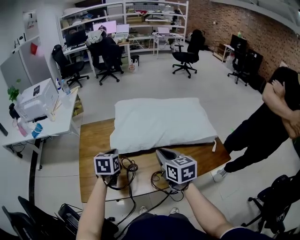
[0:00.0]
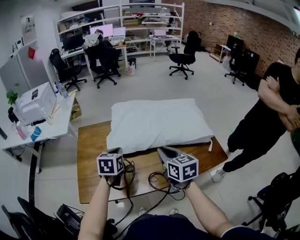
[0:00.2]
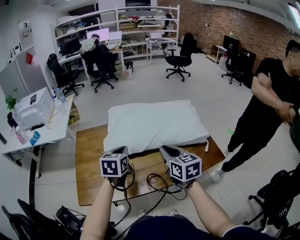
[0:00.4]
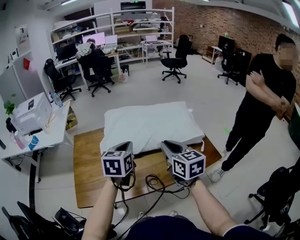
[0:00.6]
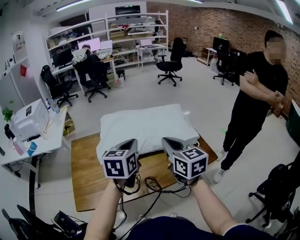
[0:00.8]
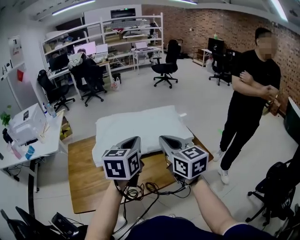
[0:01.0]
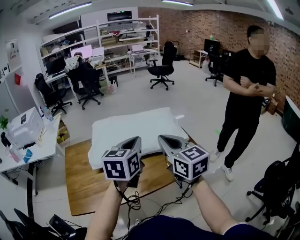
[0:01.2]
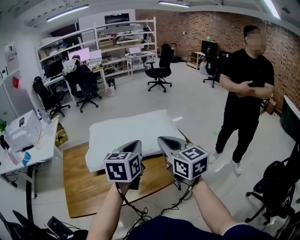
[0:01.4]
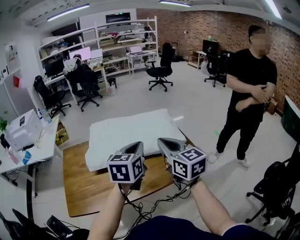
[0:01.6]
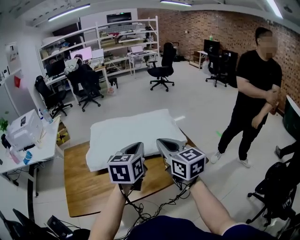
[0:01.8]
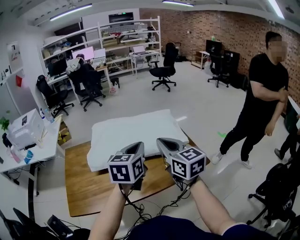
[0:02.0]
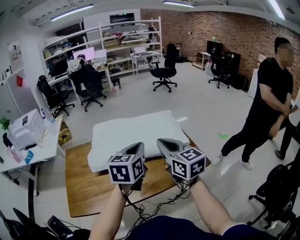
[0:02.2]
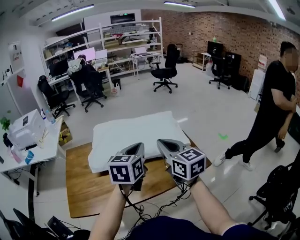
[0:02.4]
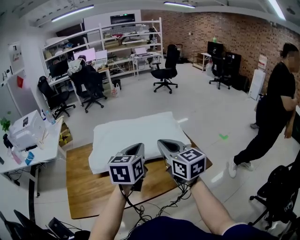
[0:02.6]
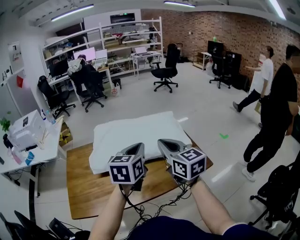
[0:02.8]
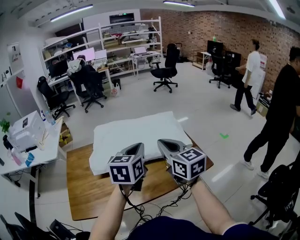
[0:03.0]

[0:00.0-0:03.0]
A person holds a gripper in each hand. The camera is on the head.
0:00.0 to 0:01.6: The right gripper moves to the right and upward, some 20 cm, and swivels some 20 degrees. The left gripper moves to the right and upward, about 35 cm, and changes its angle by approximately 30 degrees.
0:01.6 to 0:03.0: The grippers make only small movements.

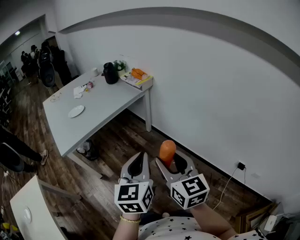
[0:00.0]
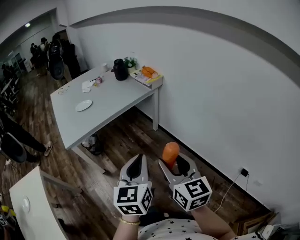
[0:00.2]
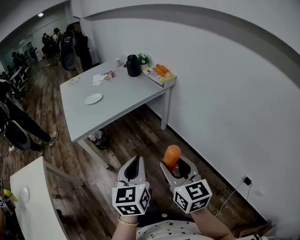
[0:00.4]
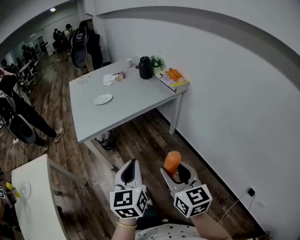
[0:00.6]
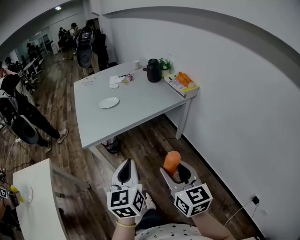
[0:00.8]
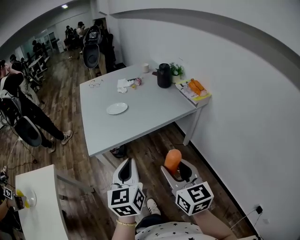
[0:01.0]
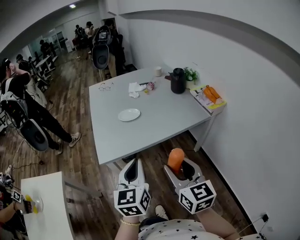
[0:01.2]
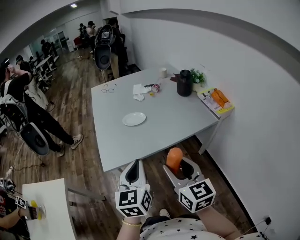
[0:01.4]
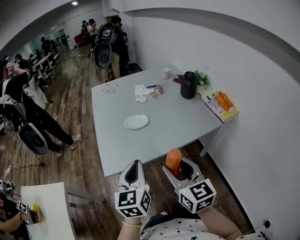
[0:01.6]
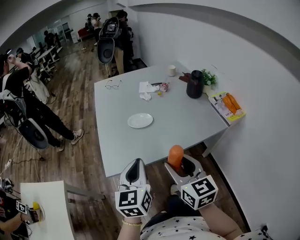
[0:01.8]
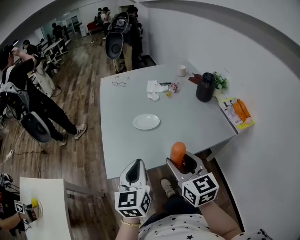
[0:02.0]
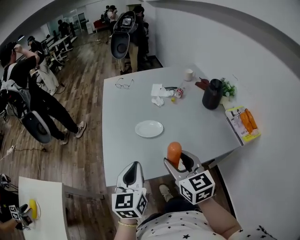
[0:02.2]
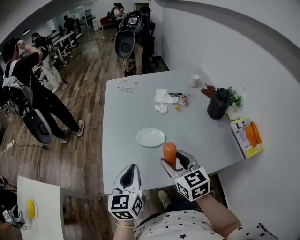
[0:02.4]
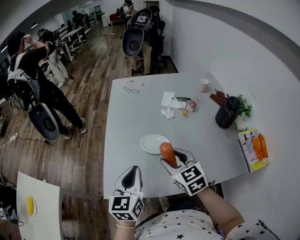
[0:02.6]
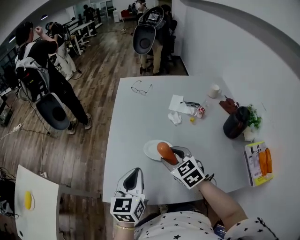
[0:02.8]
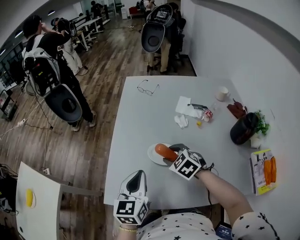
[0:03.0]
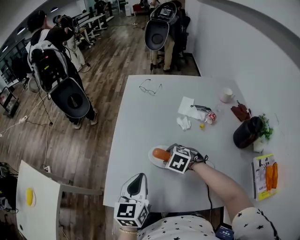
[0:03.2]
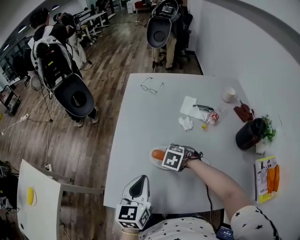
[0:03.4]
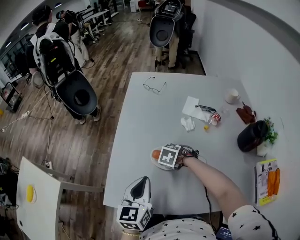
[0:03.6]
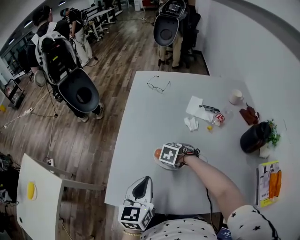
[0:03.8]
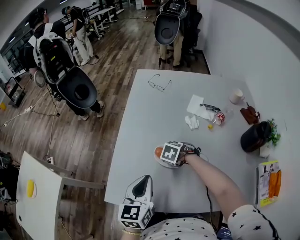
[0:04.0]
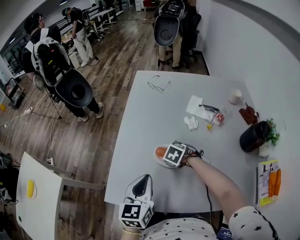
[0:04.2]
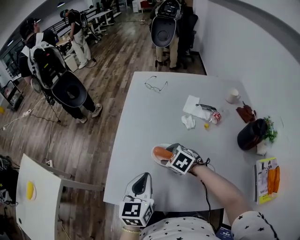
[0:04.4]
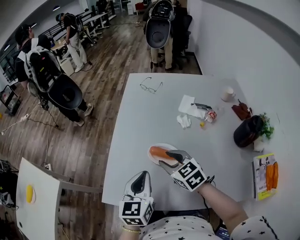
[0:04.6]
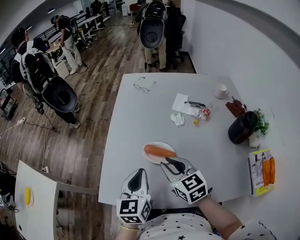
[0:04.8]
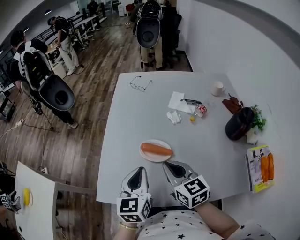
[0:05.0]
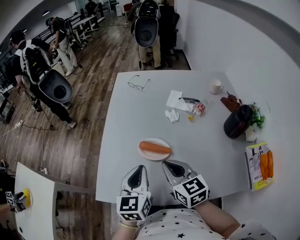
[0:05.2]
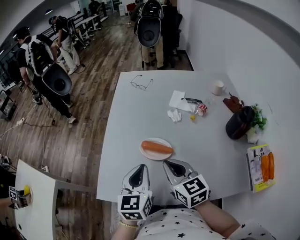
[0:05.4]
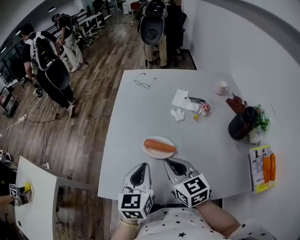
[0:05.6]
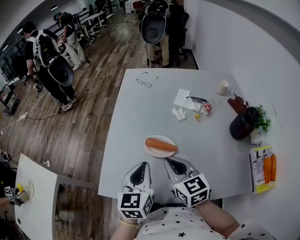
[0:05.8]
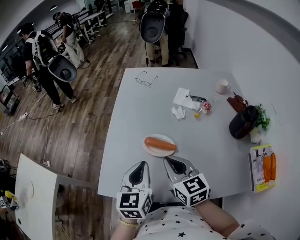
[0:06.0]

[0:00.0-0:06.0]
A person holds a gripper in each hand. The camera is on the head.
0:00.0 to 0:01.6: The two grippers travel together, approximately 50 cm. The left gripper swivels some 30 degrees, while the right gripper rotates approximately 30 degrees.
0:01.6 to 0:03.0: The left gripper ends up about 30 cm from where it was, while the right gripper ends up approximately 50 cm from where it was, and tilts its fingers roughly 40 degrees downward.
0:04.4 to 0:06.0: The right gripper shifts approximately 15 cm upward and backward, tilts its fingers roughly 40 degrees upward, and closes up.

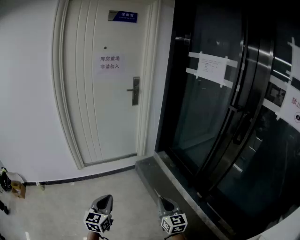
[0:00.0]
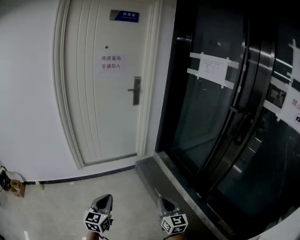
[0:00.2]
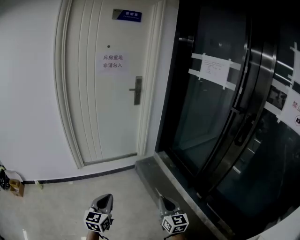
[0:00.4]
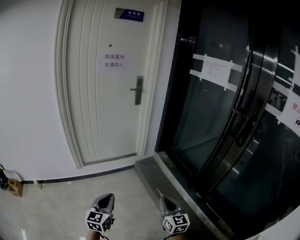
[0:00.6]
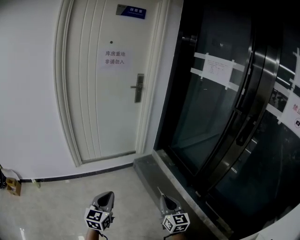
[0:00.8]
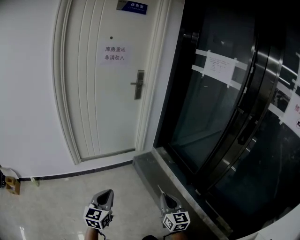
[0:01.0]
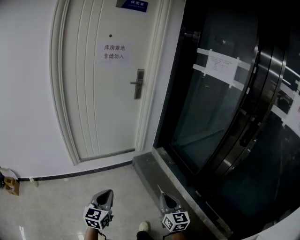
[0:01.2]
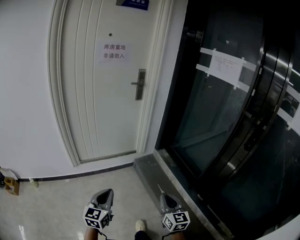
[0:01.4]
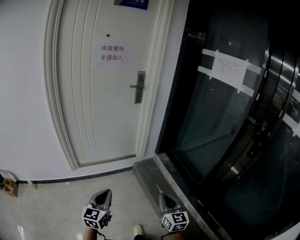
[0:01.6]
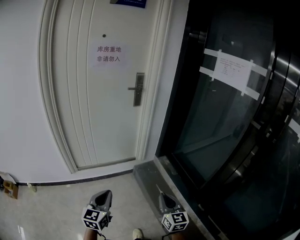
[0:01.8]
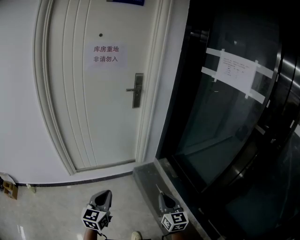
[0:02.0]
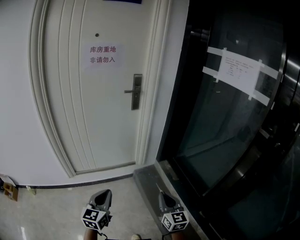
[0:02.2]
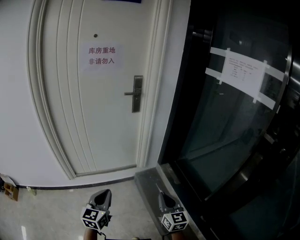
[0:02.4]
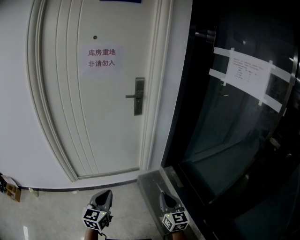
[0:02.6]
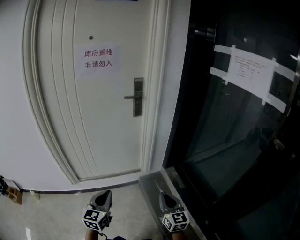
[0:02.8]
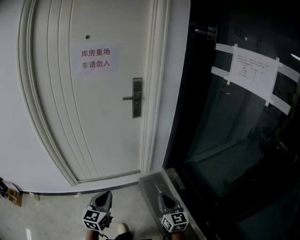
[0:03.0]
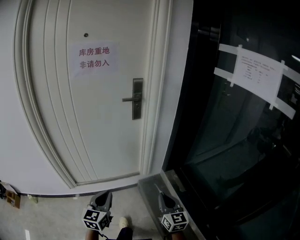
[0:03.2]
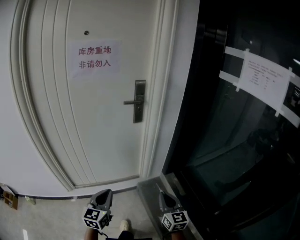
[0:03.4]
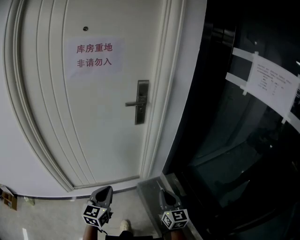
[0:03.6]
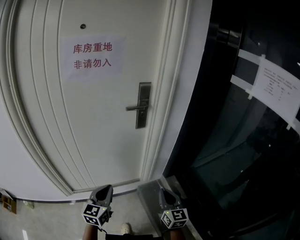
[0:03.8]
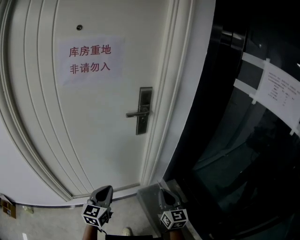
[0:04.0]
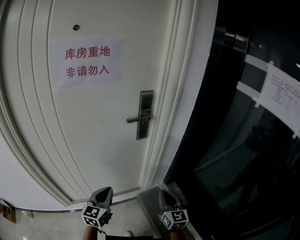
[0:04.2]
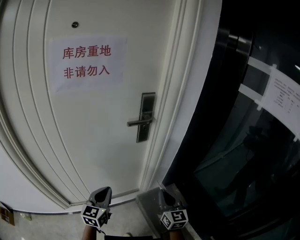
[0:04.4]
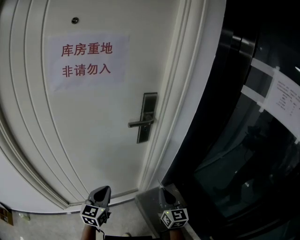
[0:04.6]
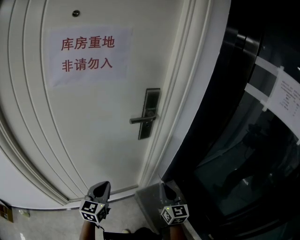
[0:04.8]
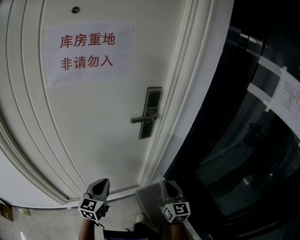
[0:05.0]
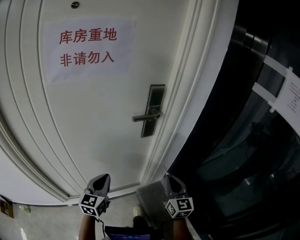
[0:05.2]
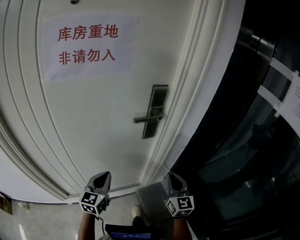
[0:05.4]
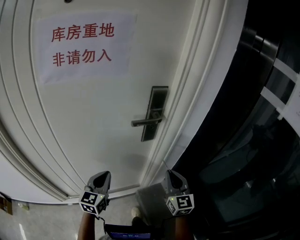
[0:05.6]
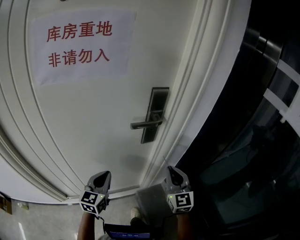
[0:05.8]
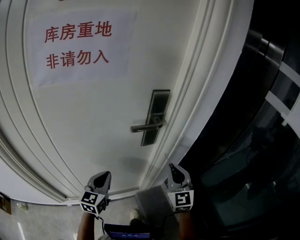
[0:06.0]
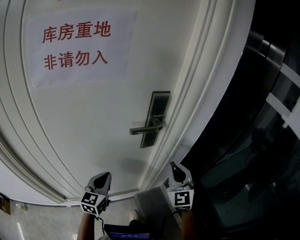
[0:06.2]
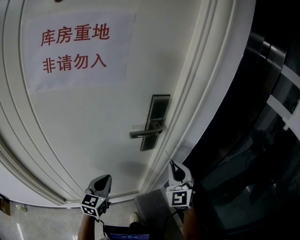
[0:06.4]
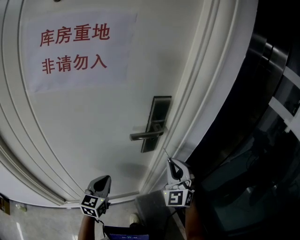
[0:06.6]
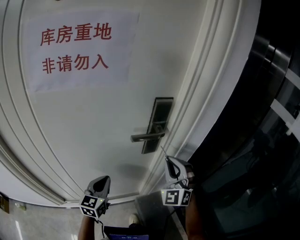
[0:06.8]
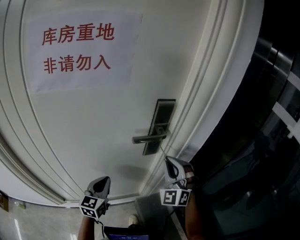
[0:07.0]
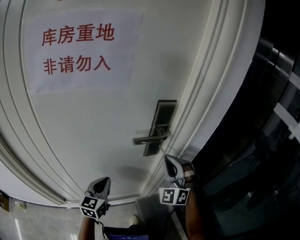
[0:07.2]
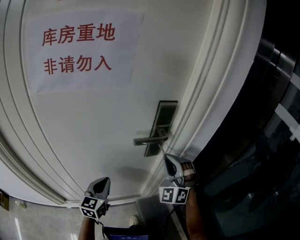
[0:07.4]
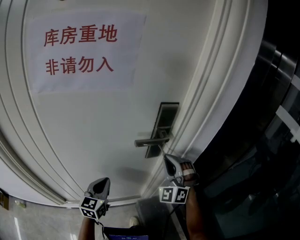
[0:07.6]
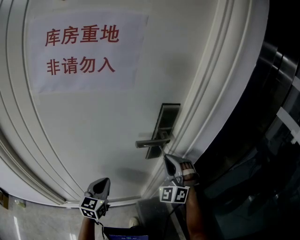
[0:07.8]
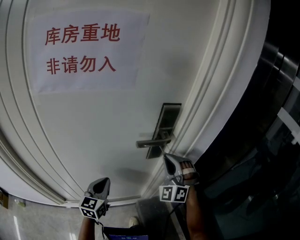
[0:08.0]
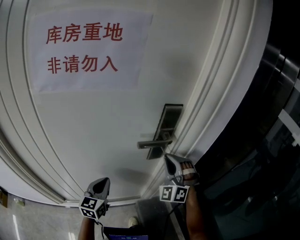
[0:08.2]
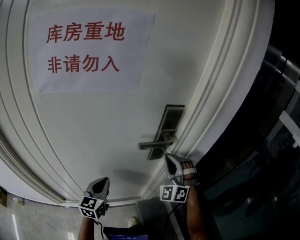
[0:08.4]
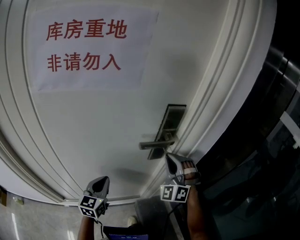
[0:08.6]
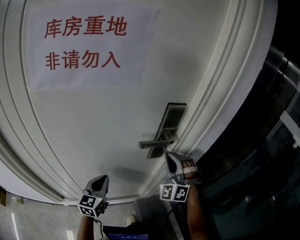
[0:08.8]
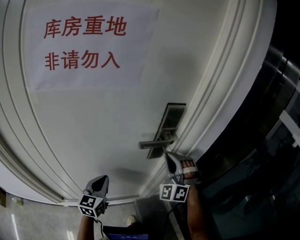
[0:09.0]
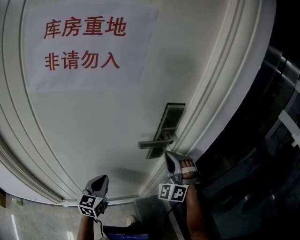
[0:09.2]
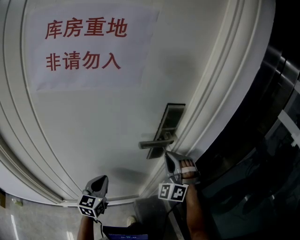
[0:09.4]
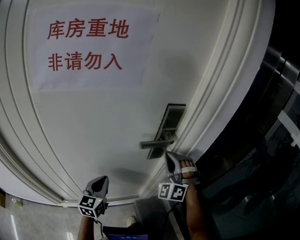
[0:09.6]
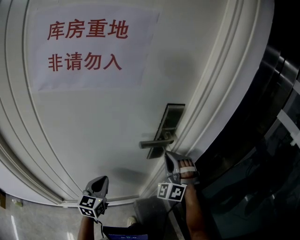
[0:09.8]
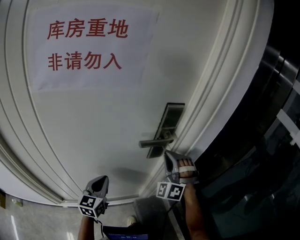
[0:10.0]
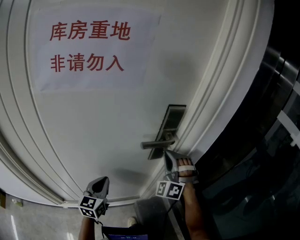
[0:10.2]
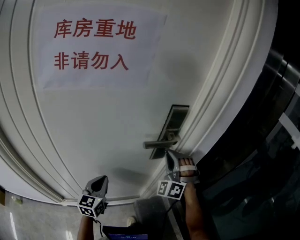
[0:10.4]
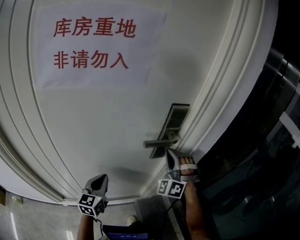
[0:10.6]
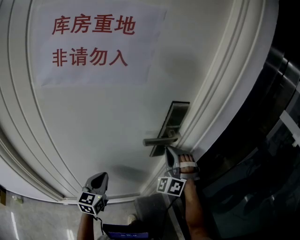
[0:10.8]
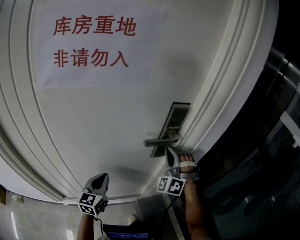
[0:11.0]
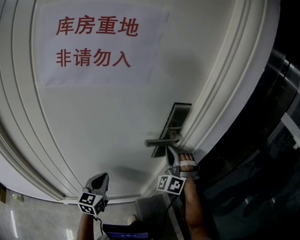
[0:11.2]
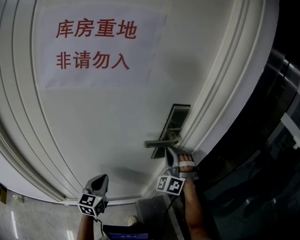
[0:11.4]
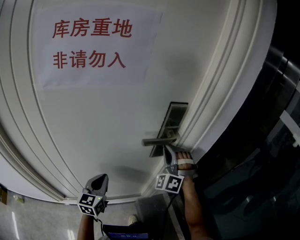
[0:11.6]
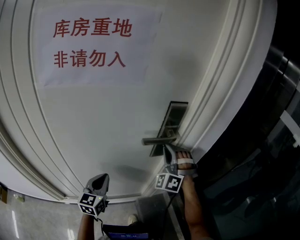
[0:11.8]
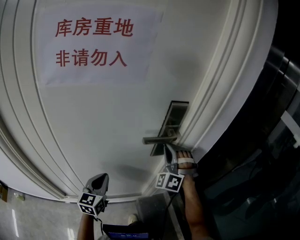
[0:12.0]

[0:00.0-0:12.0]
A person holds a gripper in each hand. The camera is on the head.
0:00.0 to 0:01.6: The two grippers go roughly 15 cm forward.
0:01.6 to 0:03.0: The two grippers go roughly 25 cm forward.
0:03.0 to 0:04.4: The grippers both shift forward by approximately 30 cm.
0:04.4 to 0:06.0: The left gripper is displaced forward by roughly 15 cm. The right gripper shifts roughly 20 cm forward and upward, and turns by some 30 degrees.
0:06.0 to 0:07.6: The right gripper moves forward and to the left, about 10 cm, and rotates around the line of its fingers by approximately 50 degrees, counterclockwise from behind.
0:07.6 to 0:12.0: The grippers move only a little.

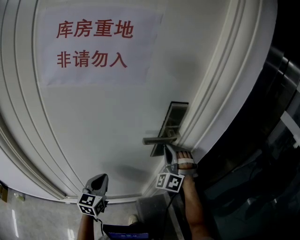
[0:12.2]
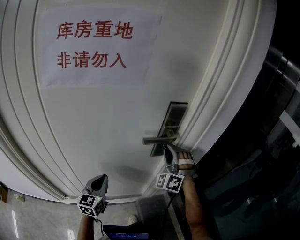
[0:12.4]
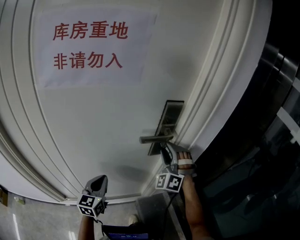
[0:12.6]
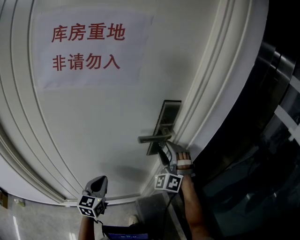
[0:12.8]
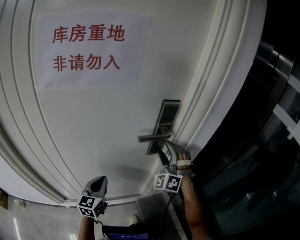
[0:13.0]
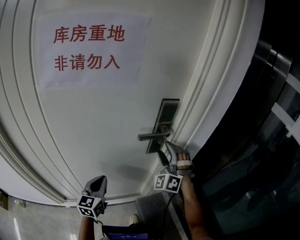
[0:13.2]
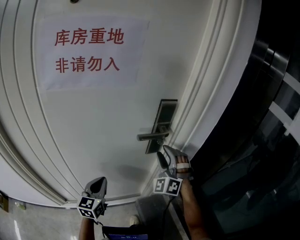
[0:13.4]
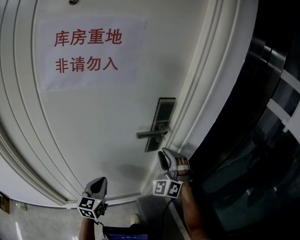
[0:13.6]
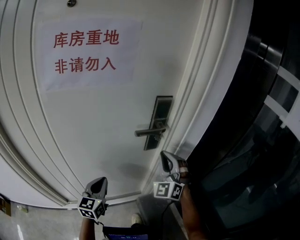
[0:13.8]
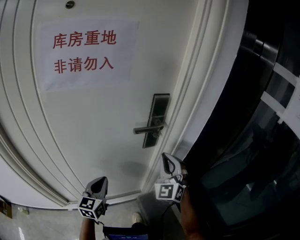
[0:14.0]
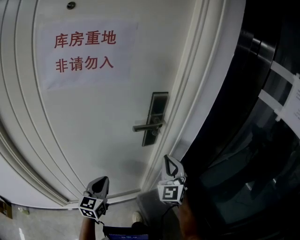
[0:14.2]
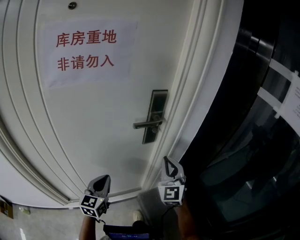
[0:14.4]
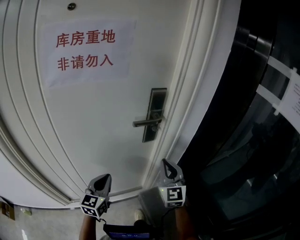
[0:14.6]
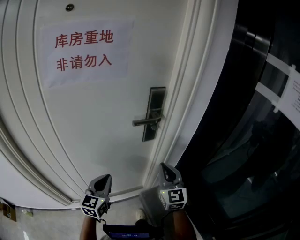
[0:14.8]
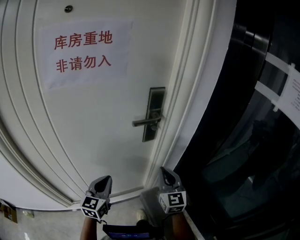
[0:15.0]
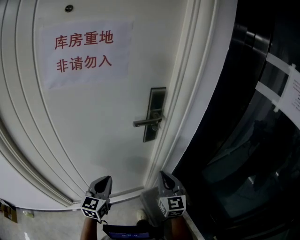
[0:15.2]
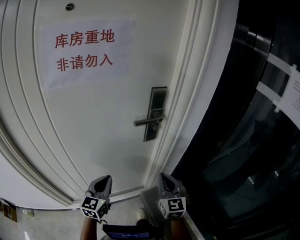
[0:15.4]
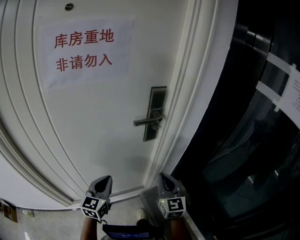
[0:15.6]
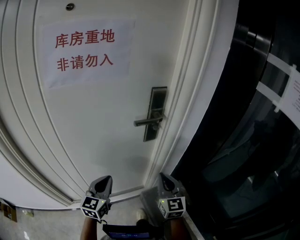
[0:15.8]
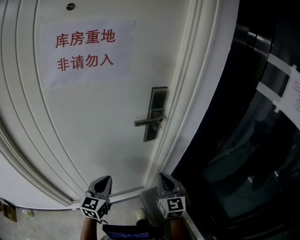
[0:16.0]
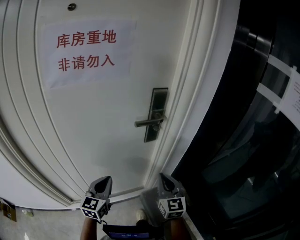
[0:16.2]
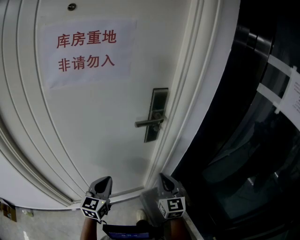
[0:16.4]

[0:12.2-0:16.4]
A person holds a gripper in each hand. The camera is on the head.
0:12.2 to 0:13.6: The right gripper shifts some 5 cm backward, and opens, then closes again.
0:13.6 to 0:15.0: The right gripper shifts some 15 cm backward and downward, twists roughly 60 degrees clockwise, seen from behind, and closes its fingers. Meanwhile the left gripper changes place by some 5 cm.
0:15.0 to 0:16.4: The grippers stay close to where they were, moving slightly.
